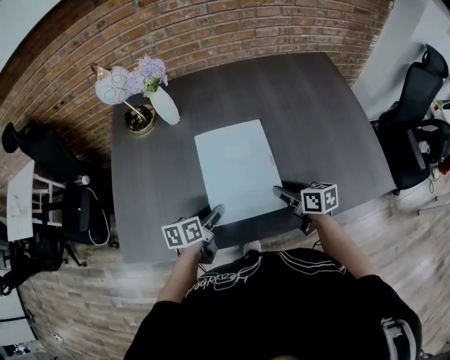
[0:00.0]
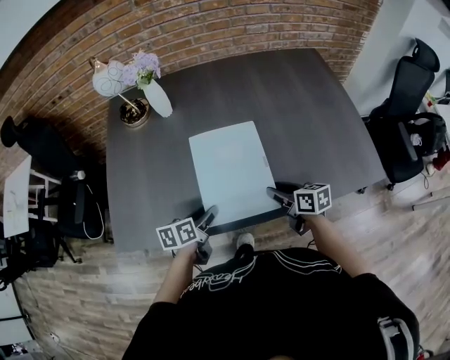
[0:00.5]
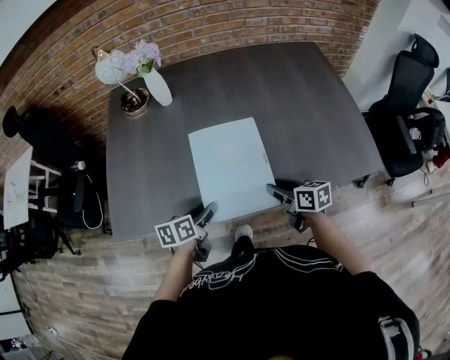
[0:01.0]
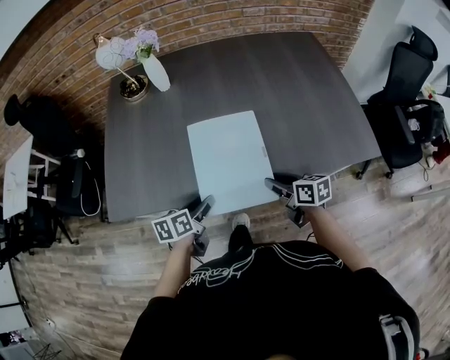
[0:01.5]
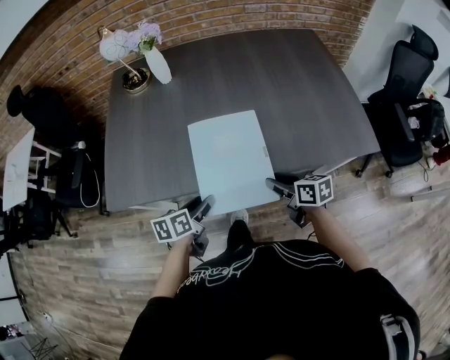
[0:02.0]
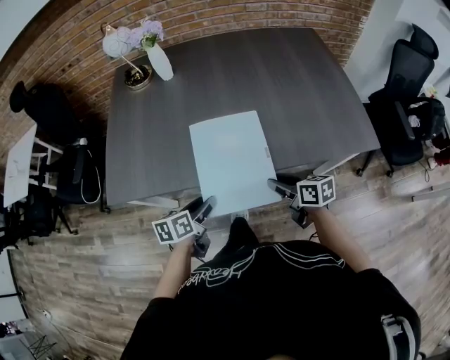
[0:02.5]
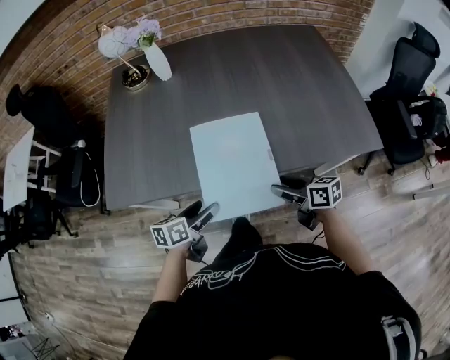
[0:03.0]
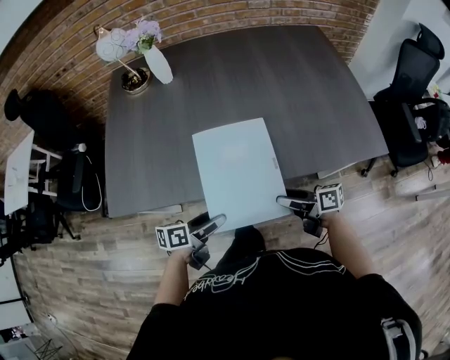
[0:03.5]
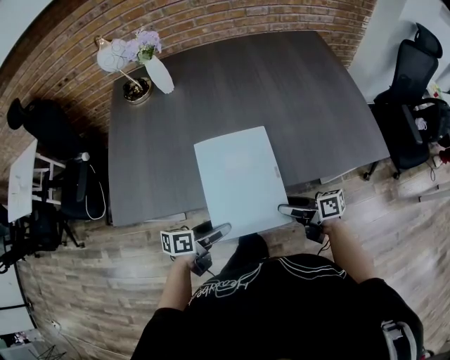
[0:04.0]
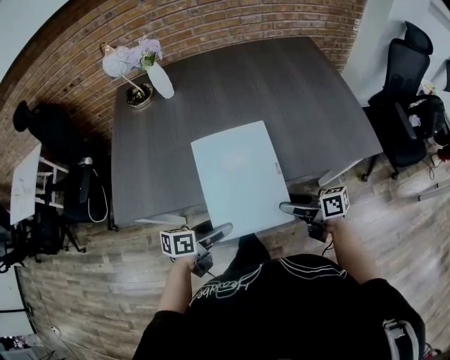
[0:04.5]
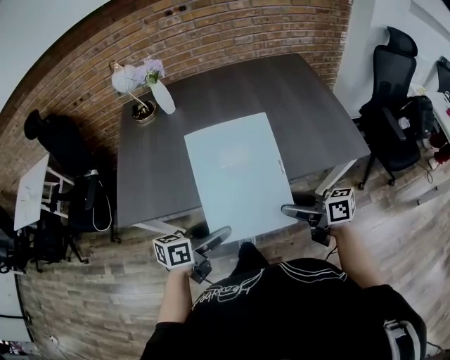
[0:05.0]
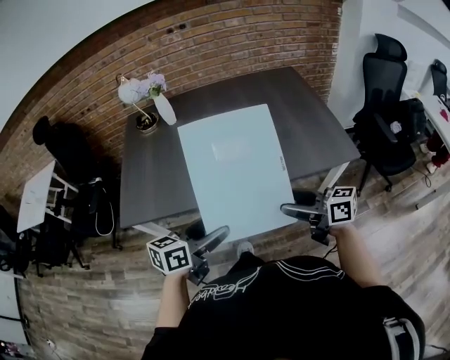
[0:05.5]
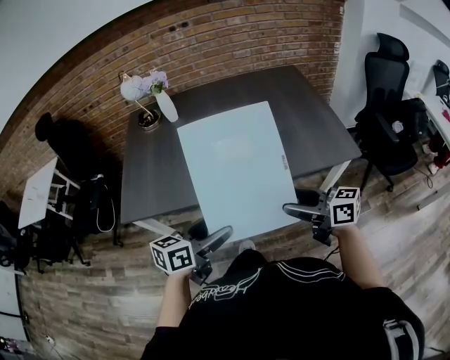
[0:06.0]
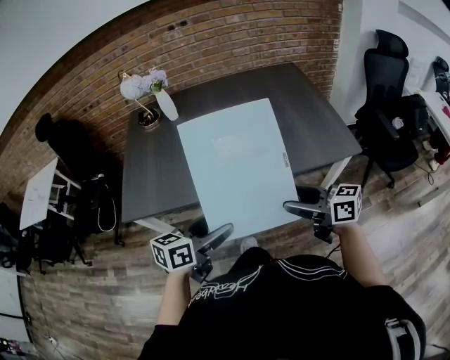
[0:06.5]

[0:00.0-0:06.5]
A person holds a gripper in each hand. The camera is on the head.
0:00.0 to 0:02.0: The two grippers go roughly 20 cm backward.
0:02.0 to 0:04.5: The left gripper shifts by some 5 cm, rotates about 20 degrees, and opens; the right gripper ends up some 5 cm from where it was, turns by roughly 20 degrees, and opens up.
0:04.5 to 0:06.5: Both grippers move upward and backward, about 20 cm. The right gripper turns by some 20 degrees. The left gripper turns by some 20 degrees.

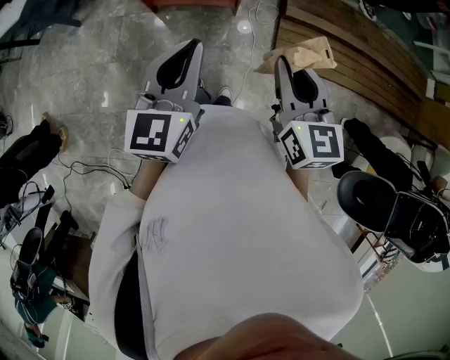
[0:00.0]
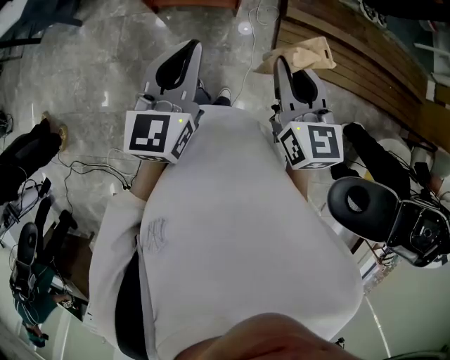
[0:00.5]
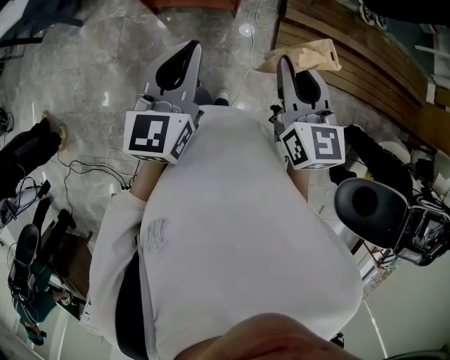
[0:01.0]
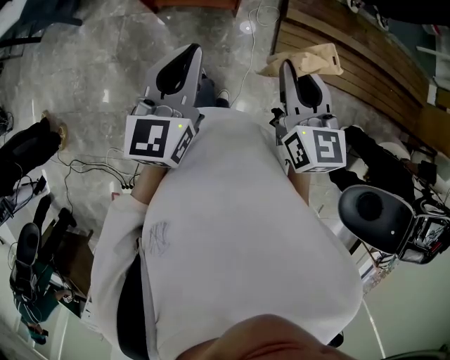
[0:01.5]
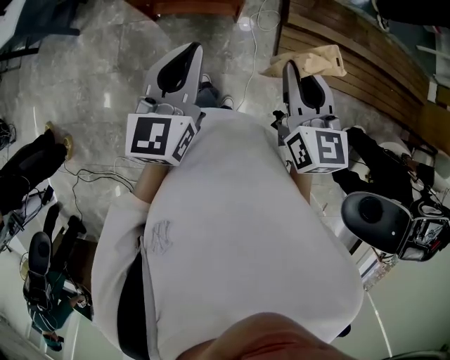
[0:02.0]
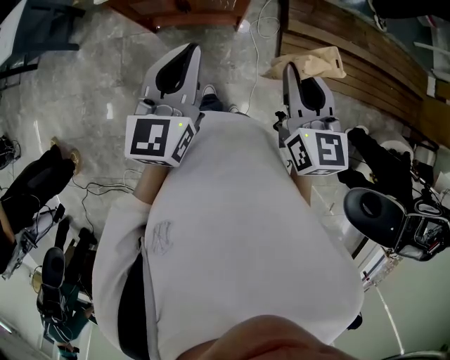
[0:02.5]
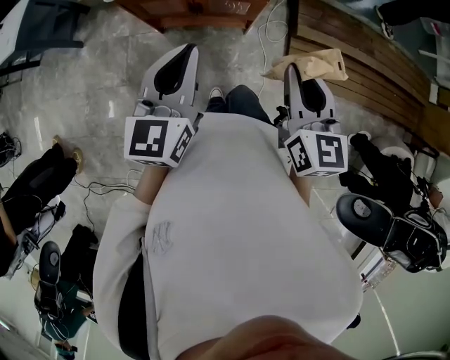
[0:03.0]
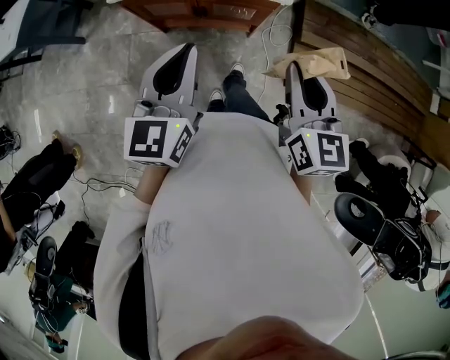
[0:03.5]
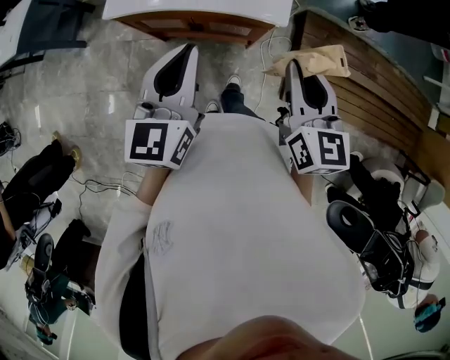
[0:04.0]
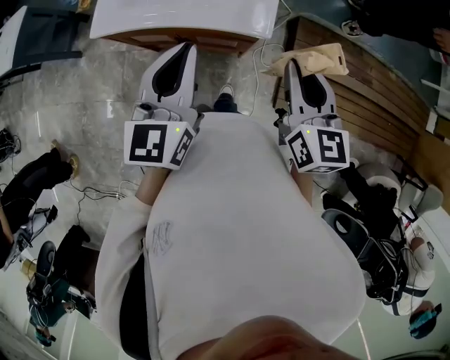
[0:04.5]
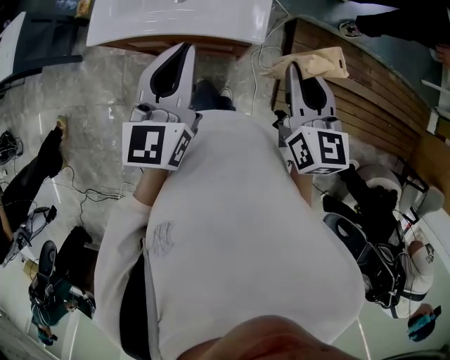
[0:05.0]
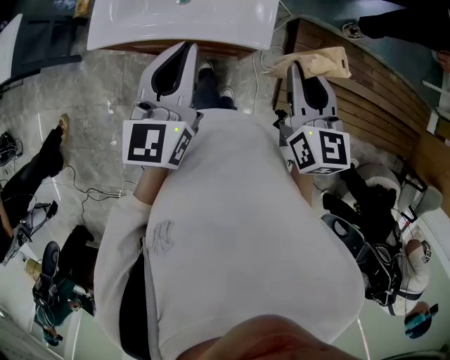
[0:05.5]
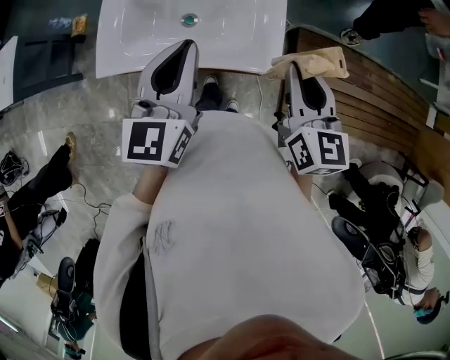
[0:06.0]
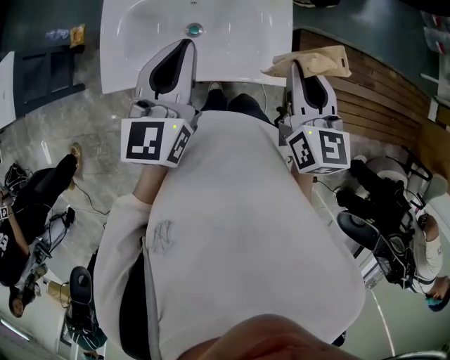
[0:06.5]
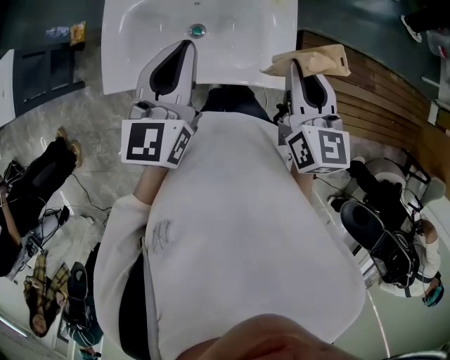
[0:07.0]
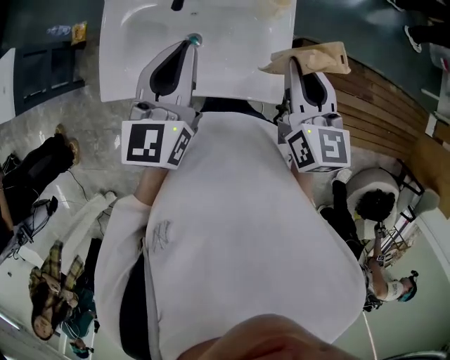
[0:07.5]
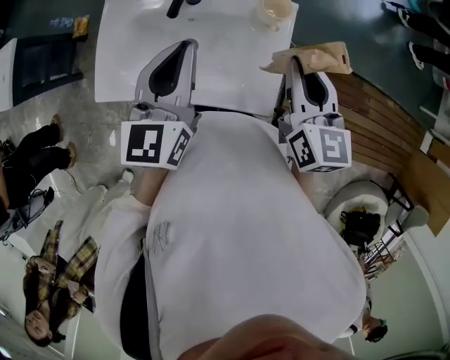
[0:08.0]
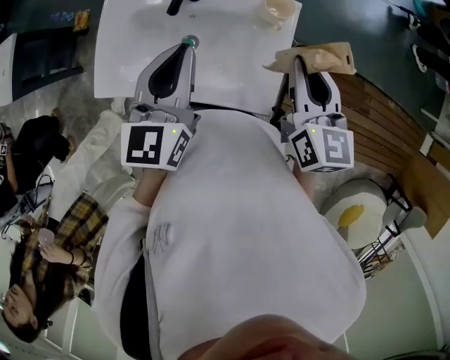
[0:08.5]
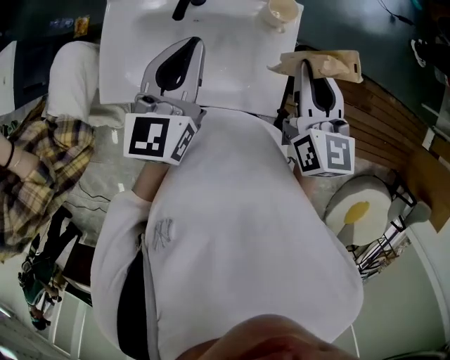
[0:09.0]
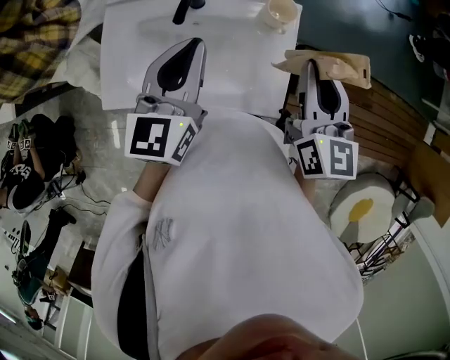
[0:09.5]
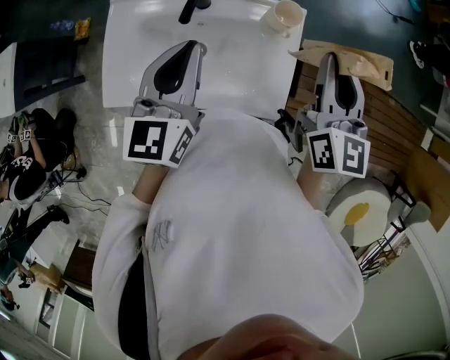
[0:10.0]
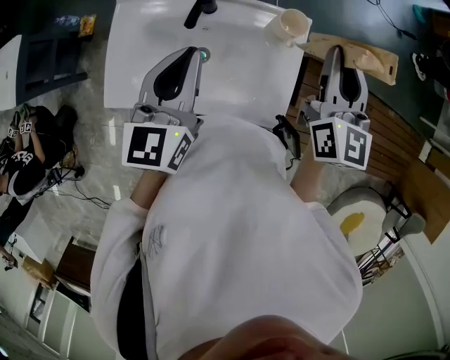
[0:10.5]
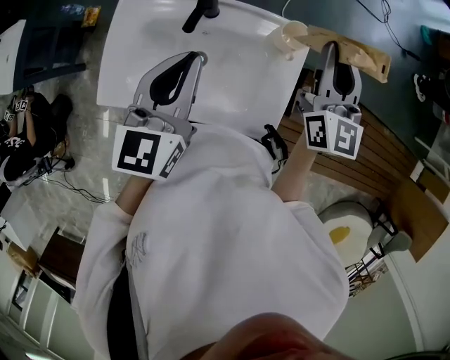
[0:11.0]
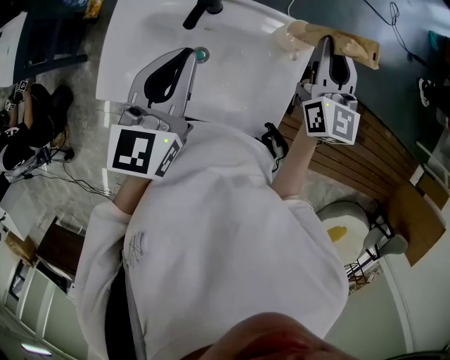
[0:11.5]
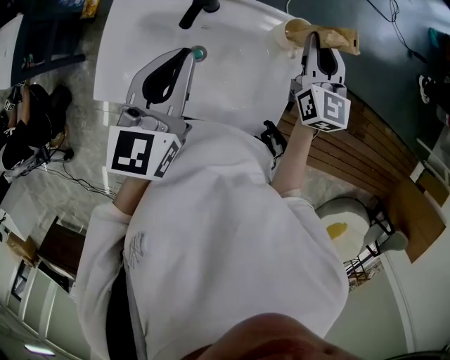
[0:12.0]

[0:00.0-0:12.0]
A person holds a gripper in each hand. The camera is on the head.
0:00.0 to 0:02.0: Both grippers move forward, approximately 10 cm.
0:02.0 to 0:04.0: Both grippers move forward, approximately 20 cm.
0:04.0 to 0:06.0: Both grippers travel together forward, about 20 cm.
0:06.0 to 0:08.0: Both grippers move forward, about 15 cm.
0:08.0 to 0:10.0: The right gripper shifts roughly 5 cm upward.
0:10.0 to 0:12.0: The right gripper travels downward and forward by roughly 15 cm.

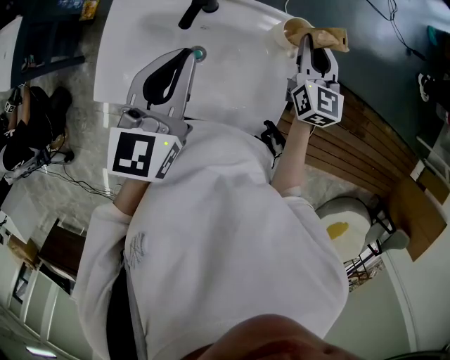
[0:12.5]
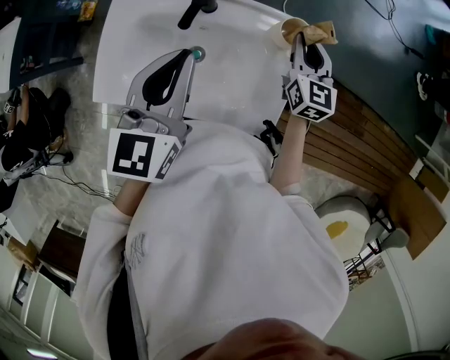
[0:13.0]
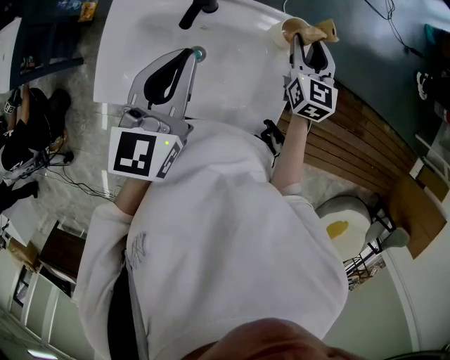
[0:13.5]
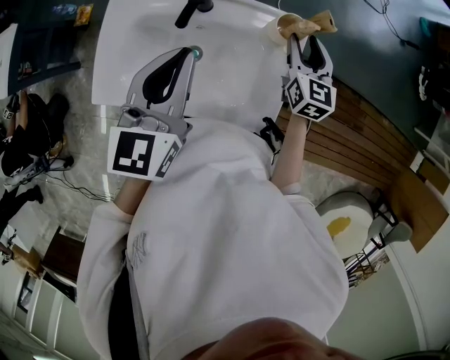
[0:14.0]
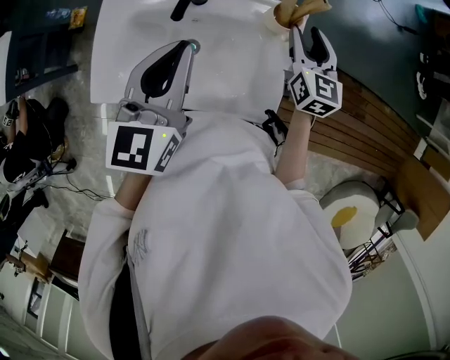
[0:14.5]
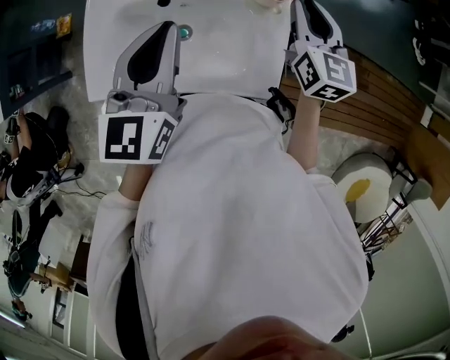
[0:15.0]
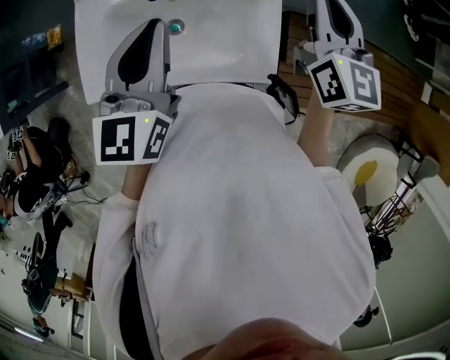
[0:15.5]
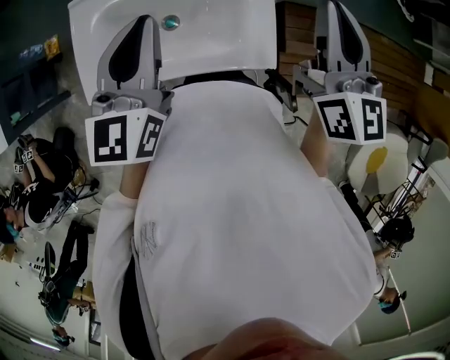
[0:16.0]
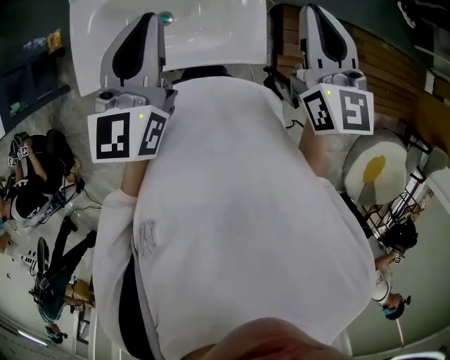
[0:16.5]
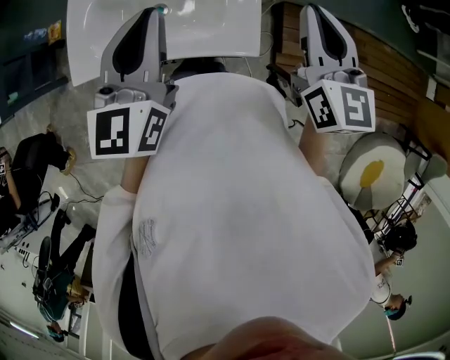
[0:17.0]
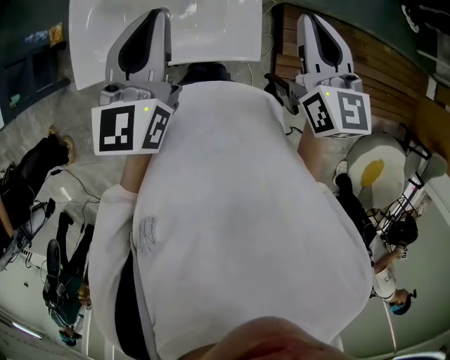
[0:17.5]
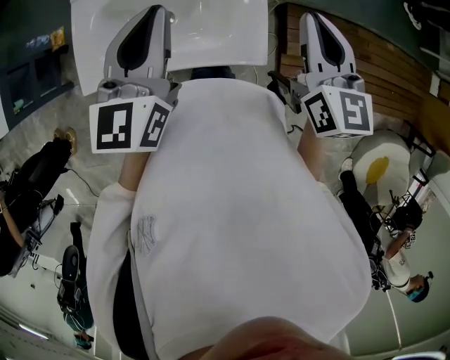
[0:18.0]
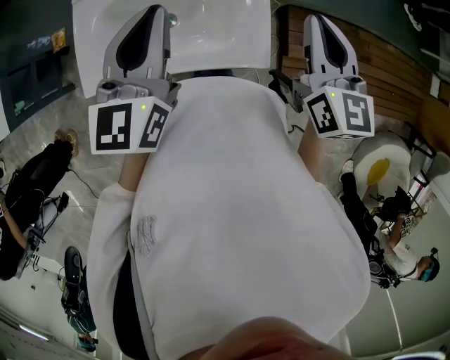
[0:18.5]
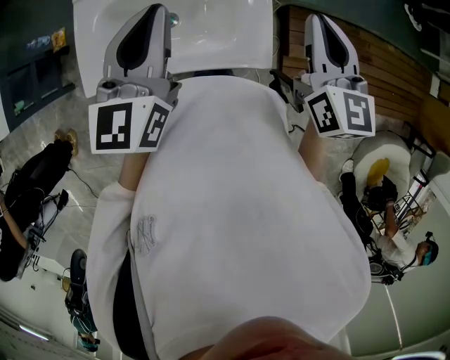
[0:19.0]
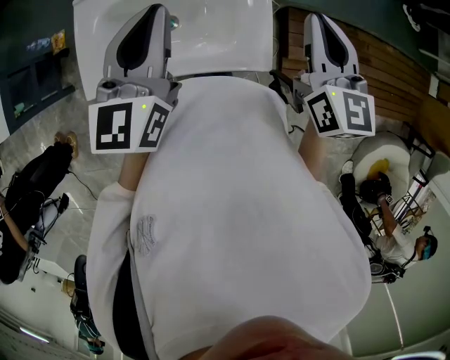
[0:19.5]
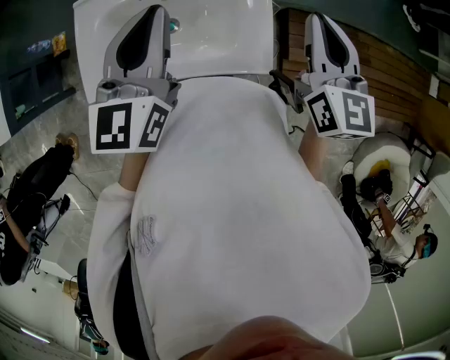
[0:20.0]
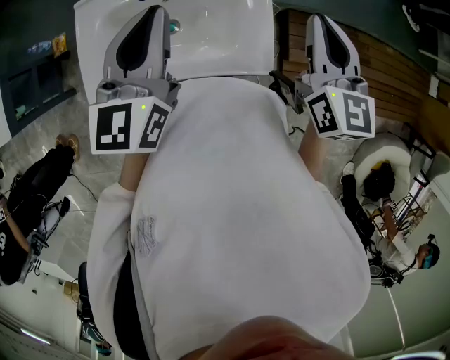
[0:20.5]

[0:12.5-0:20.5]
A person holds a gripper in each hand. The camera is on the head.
0:12.5 to 0:14.5: The right gripper opens its fingers.
0:14.5 to 0:16.5: The right gripper is displaced backward and upward by approximately 25 cm, and closes its fingers; the left gripper shifts approximately 5 cm backward.
0:16.5 to 0:20.5: The grippers move only a little.

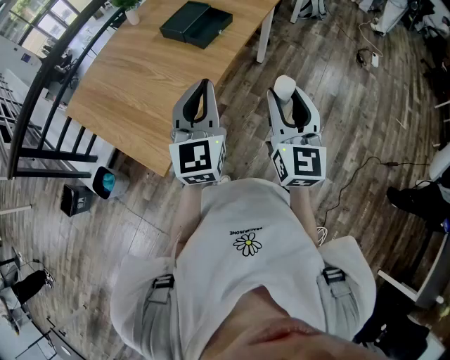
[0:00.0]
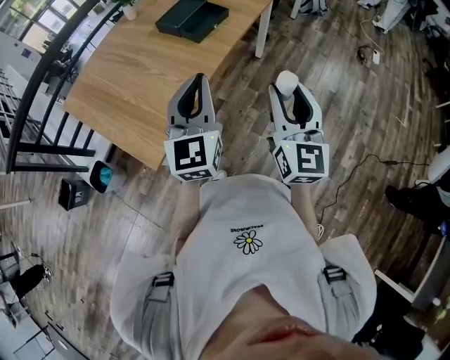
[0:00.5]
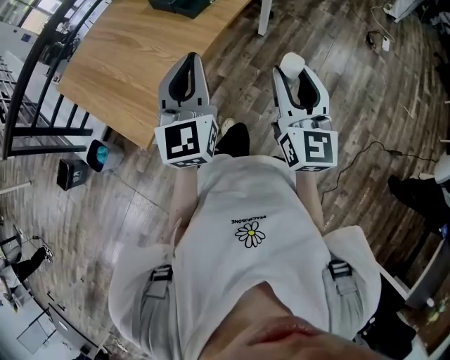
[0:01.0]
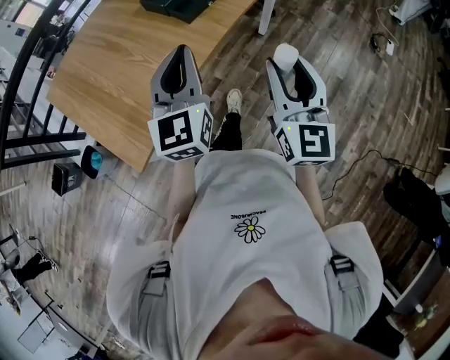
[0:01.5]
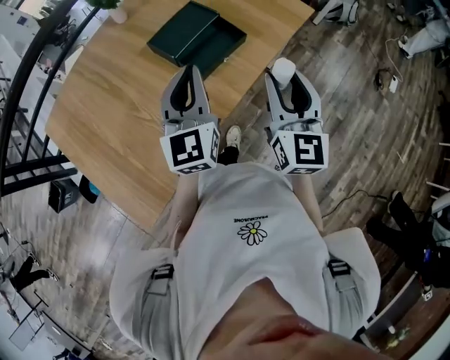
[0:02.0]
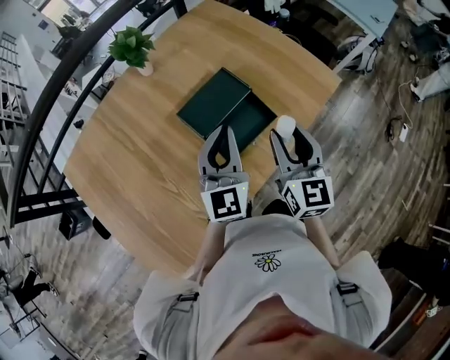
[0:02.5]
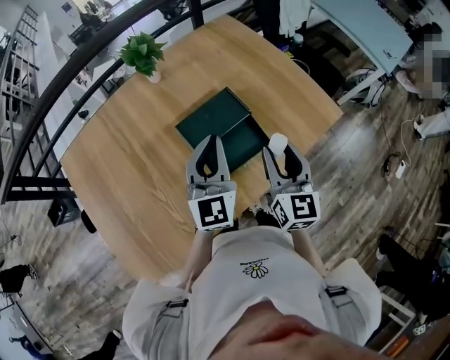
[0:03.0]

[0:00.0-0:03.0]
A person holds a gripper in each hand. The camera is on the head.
0:00.0 to 0:01.5: Both grippers travel together forward, roughly 10 cm.
0:01.5 to 0:03.0: Both grippers move forward, some 40 cm. The right gripper rotates about 20 degrees.
